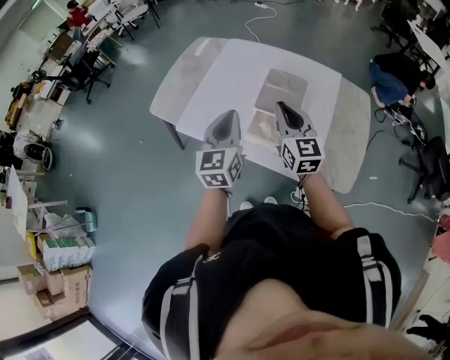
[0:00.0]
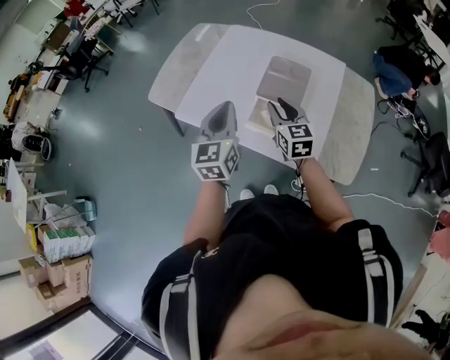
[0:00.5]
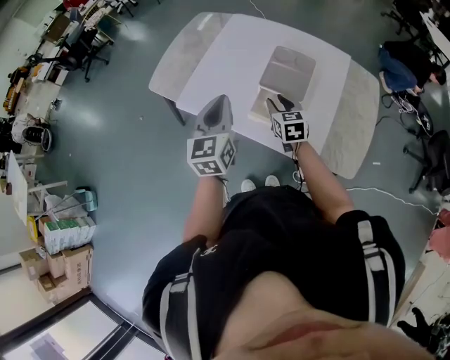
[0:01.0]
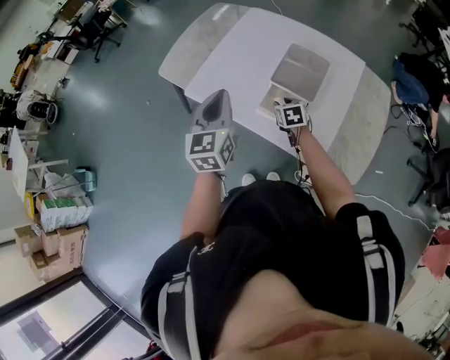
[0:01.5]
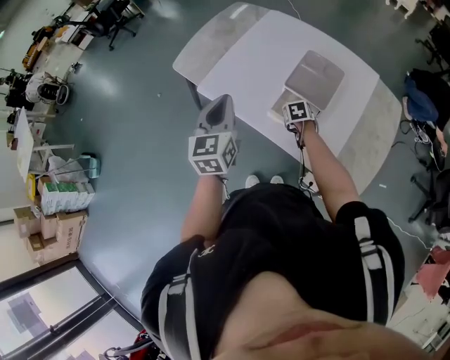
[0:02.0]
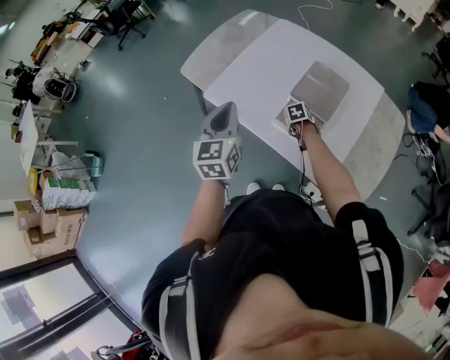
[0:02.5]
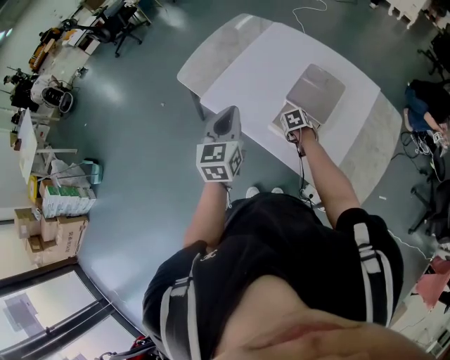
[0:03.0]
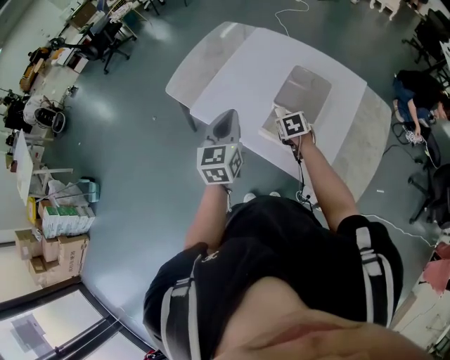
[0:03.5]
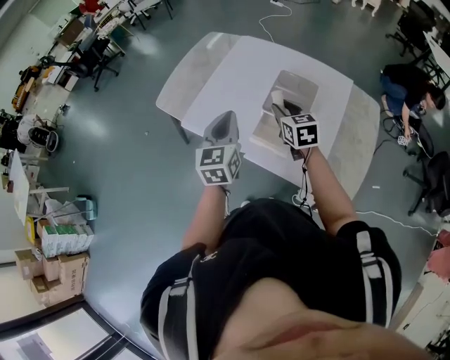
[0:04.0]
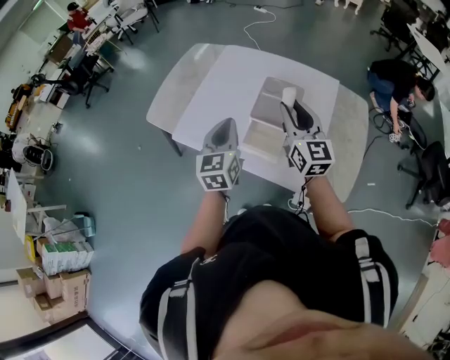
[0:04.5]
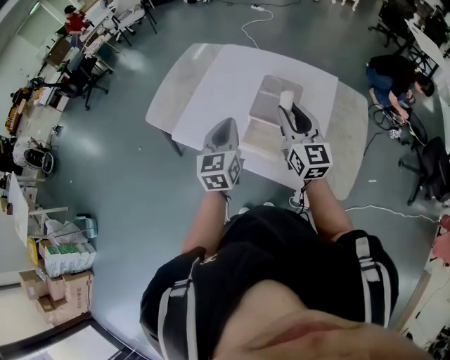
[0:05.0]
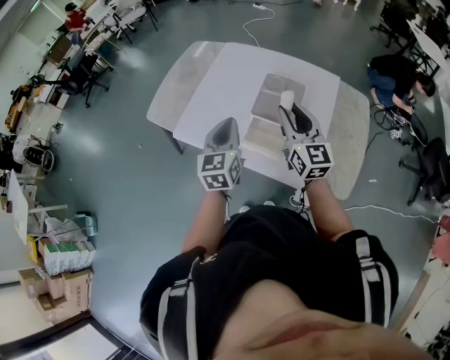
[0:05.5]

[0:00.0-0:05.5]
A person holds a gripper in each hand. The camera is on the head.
0:00.0 to 0:02.0: The right gripper goes approximately 30 cm downward, angles its fingers downward, by roughly 60 degrees, and opens. Meanwhile the left gripper goes some 10 cm to the left.
0:02.0 to 0:03.5: The right gripper travels upward by some 10 cm.
0:03.5 to 0:05.5: The left gripper is displaced to the right by approximately 5 cm. Meanwhile the right gripper is displaced upward by about 25 cm, and points its fingers roughly 60 degrees further upward.

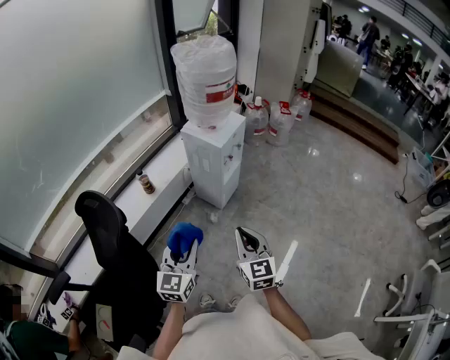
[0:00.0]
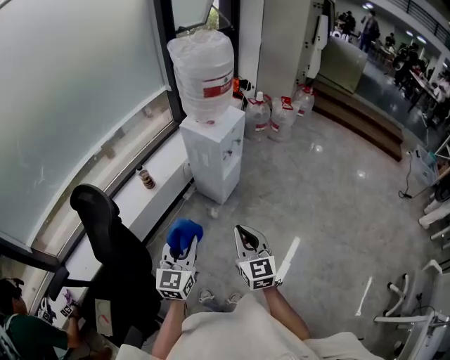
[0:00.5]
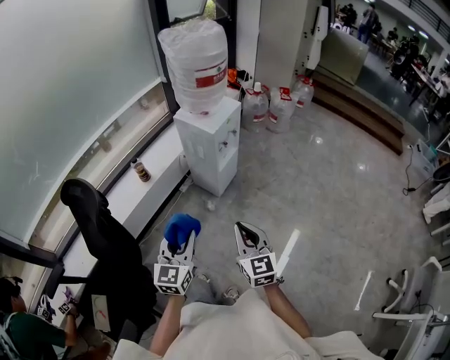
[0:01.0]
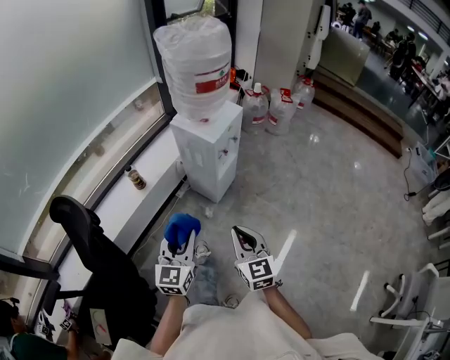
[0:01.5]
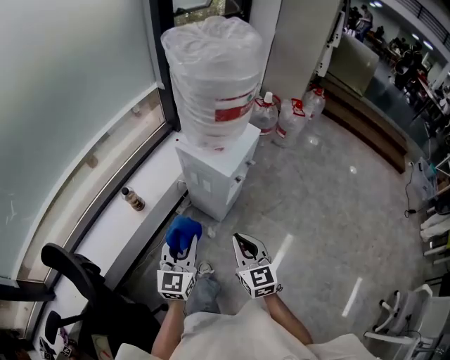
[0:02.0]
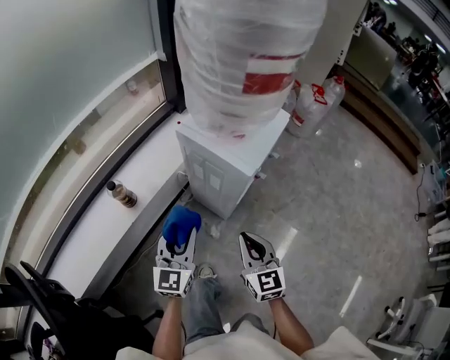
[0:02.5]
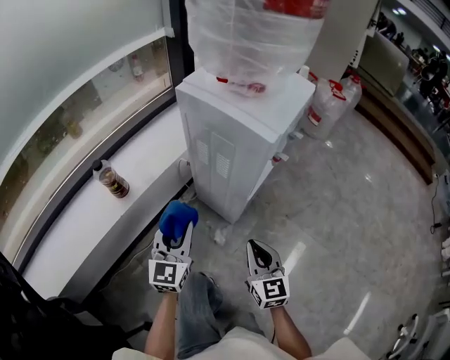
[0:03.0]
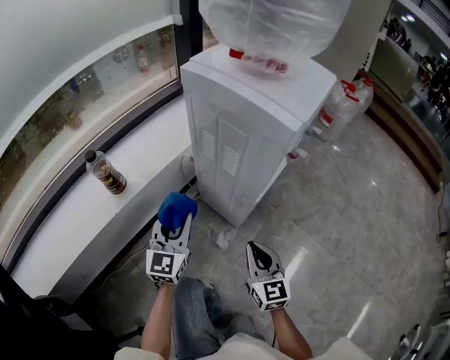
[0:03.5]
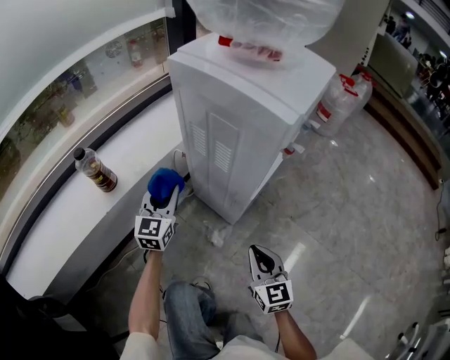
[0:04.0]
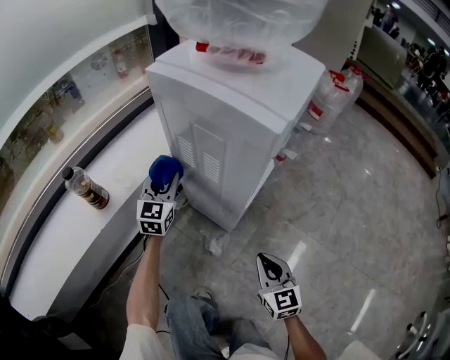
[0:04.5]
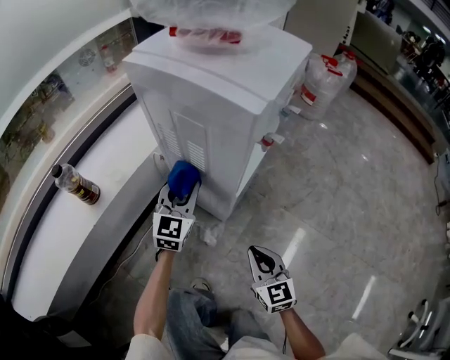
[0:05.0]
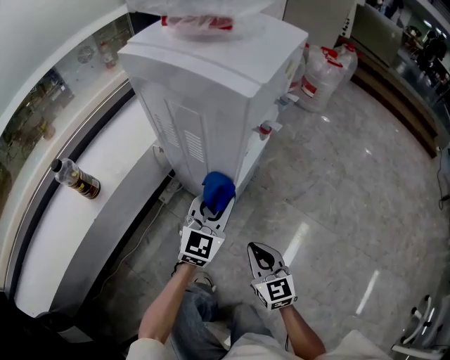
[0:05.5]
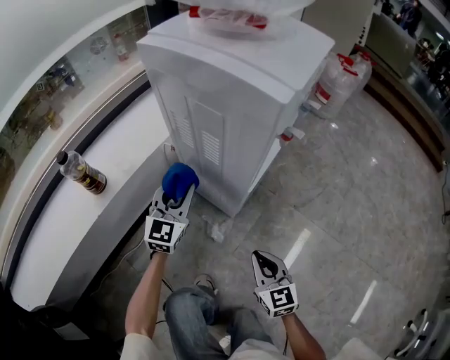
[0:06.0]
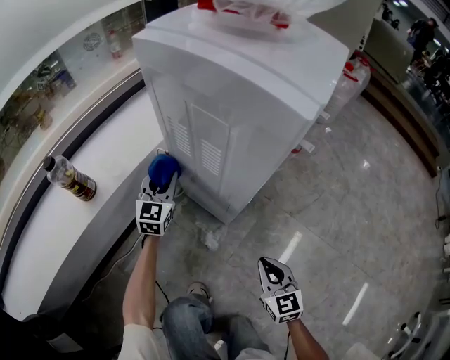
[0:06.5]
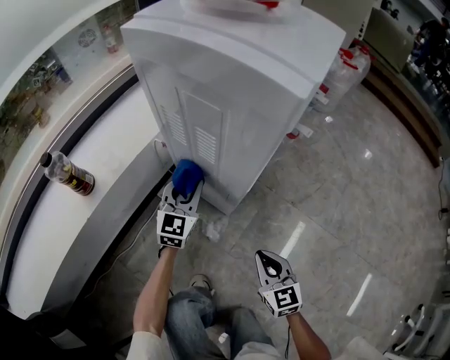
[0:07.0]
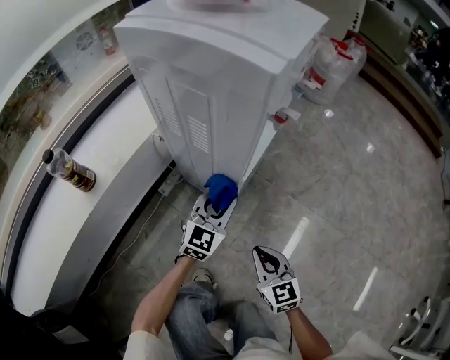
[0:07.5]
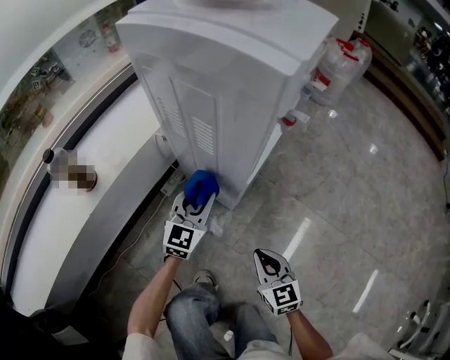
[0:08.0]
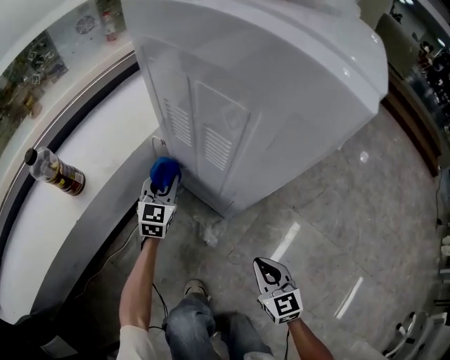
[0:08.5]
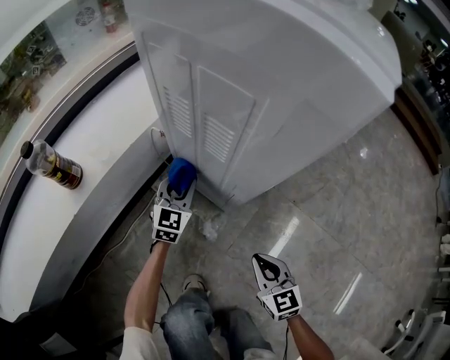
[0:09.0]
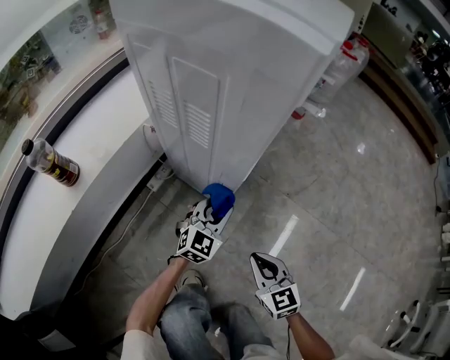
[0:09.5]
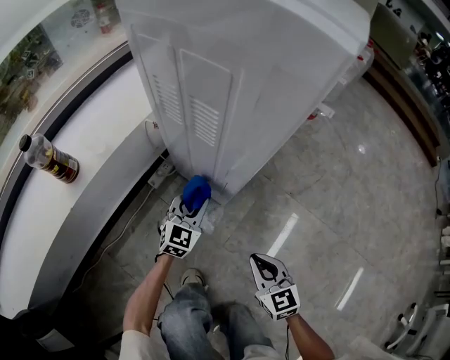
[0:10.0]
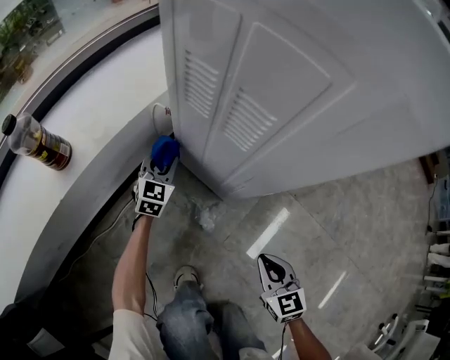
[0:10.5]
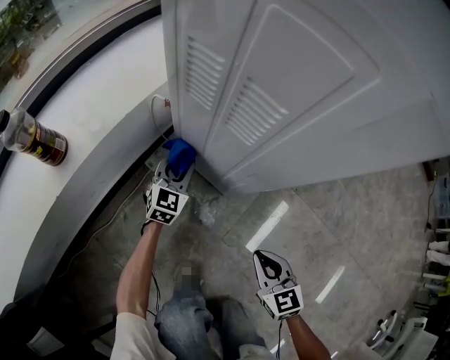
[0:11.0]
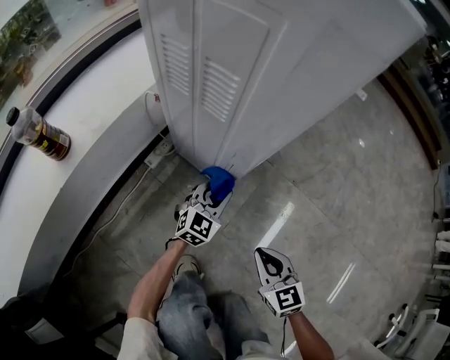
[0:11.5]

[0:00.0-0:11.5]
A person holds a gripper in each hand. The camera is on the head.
0:00.0 to 0:02.0: Both grippers travel together forward, some 25 cm.
0:02.0 to 0:04.0: The left gripper goes roughly 50 cm downward and forward, while the right gripper shifts approximately 40 cm downward.
0:04.0 to 0:06.0: The right gripper heads downward, covering roughly 5 cm. The left gripper goes some 10 cm to the right.
0:06.0 to 0:07.5: The left gripper heads to the right and downward, covering approximately 15 cm.
0:07.5 to 0:09.5: The left gripper travels downward by approximately 10 cm, and moves some 20 cm to the left and comes back.
0:09.5 to 0:11.5: The left gripper is displaced downward by some 5 cm, and goes to the left and returns, about 20 cm each way.

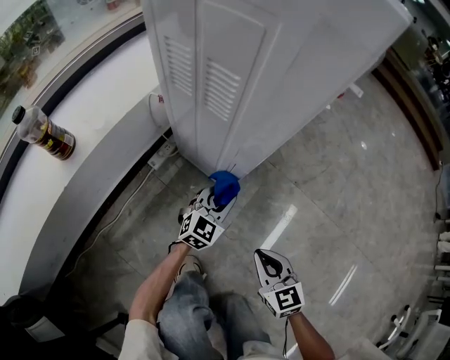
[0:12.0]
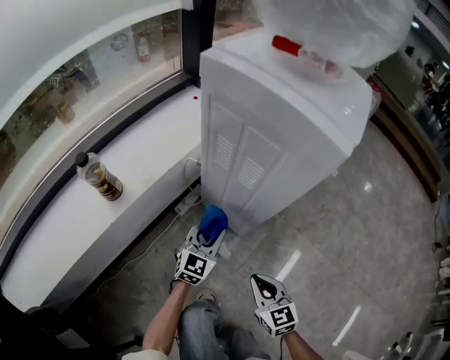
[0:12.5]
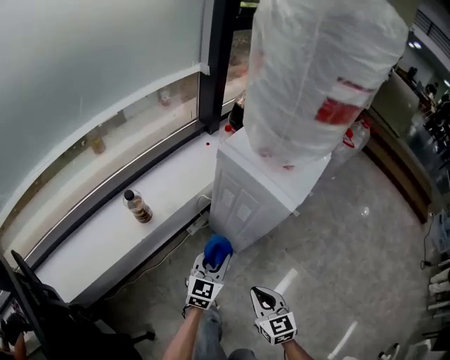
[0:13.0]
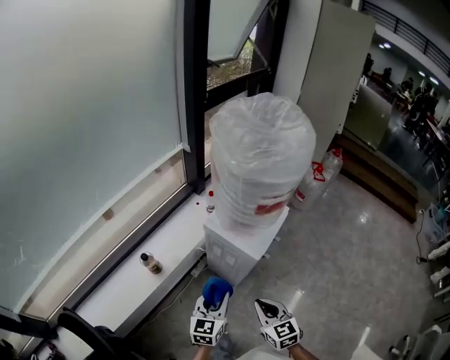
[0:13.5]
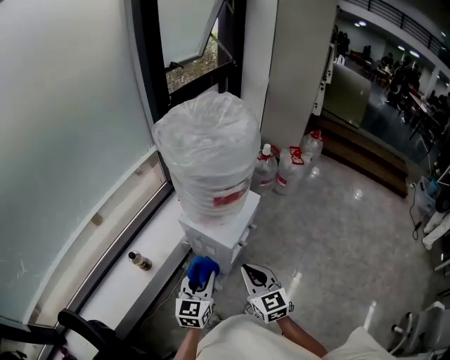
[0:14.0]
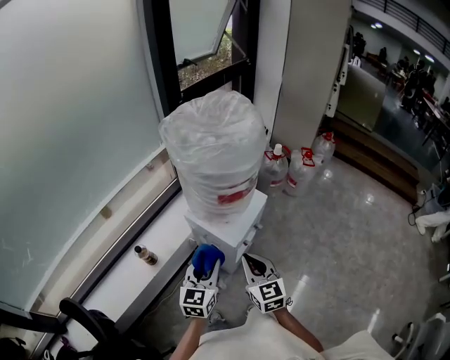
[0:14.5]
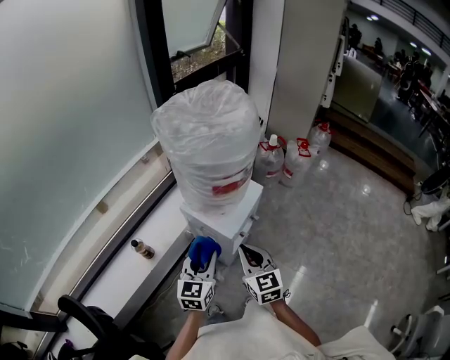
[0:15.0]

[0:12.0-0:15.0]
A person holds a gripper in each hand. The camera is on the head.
0:12.0 to 0:13.5: Both grippers move upward, roughly 60 cm. The left gripper swivels about 30 degrees.
0:13.5 to 0:15.0: The left gripper travels upward and to the right by roughly 10 cm. The right gripper goes some 15 cm upward, forward and to the right.

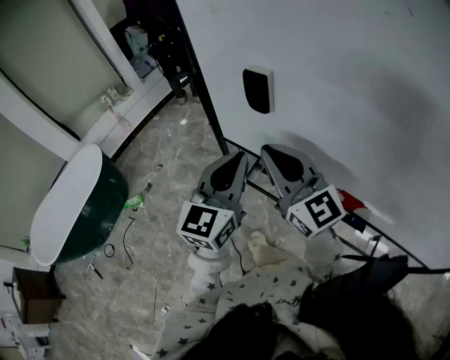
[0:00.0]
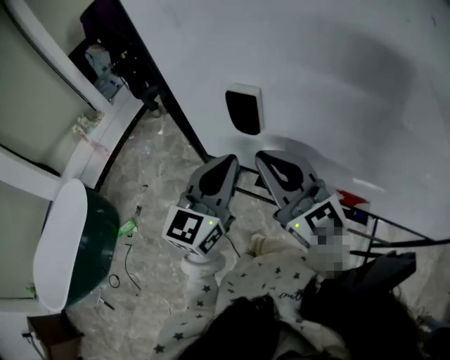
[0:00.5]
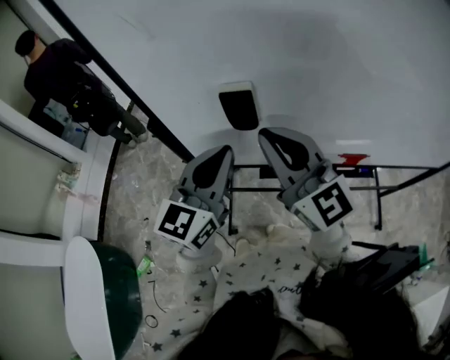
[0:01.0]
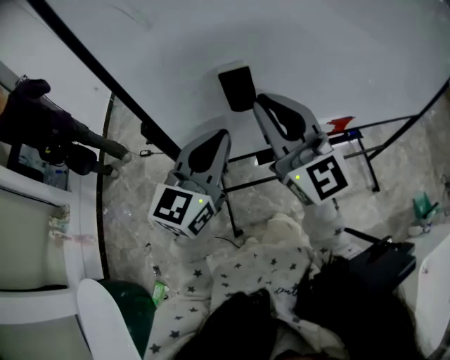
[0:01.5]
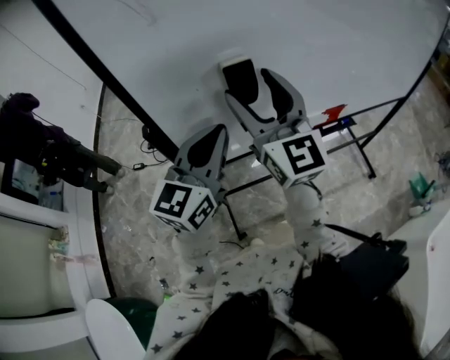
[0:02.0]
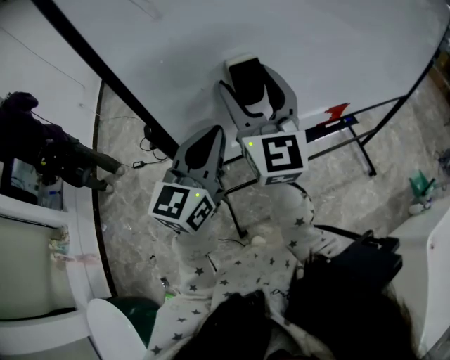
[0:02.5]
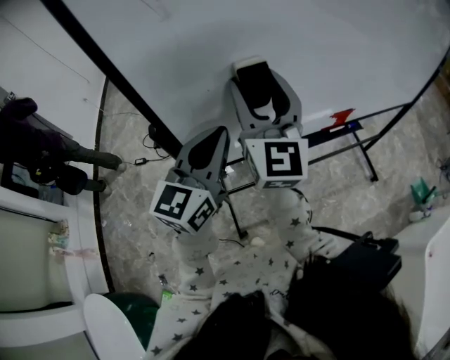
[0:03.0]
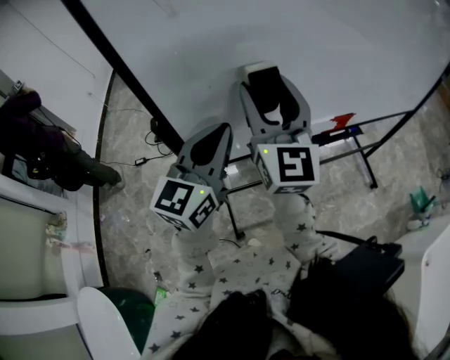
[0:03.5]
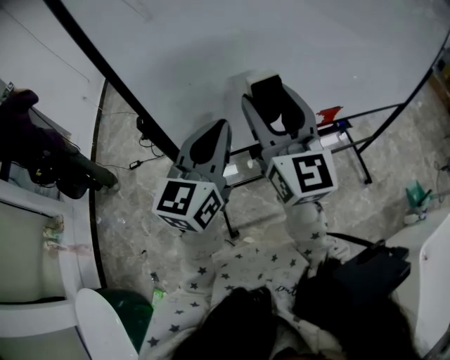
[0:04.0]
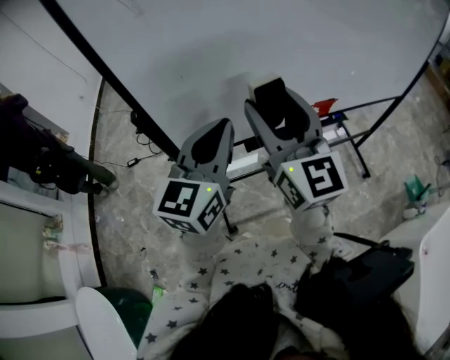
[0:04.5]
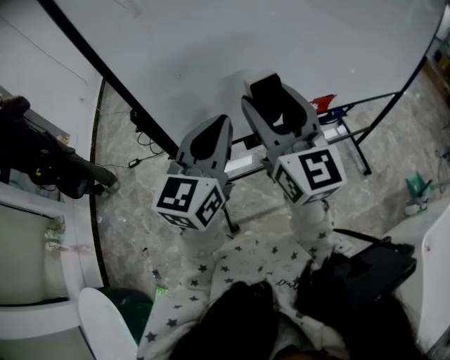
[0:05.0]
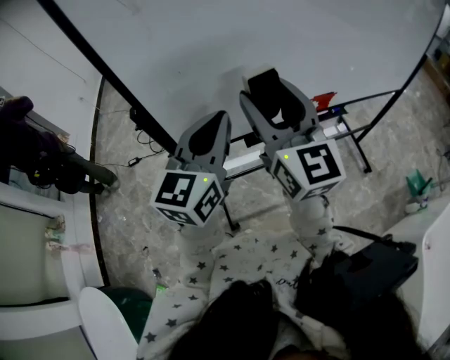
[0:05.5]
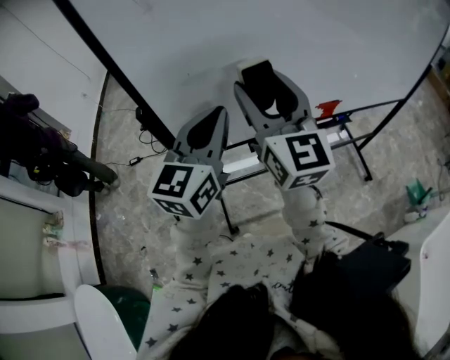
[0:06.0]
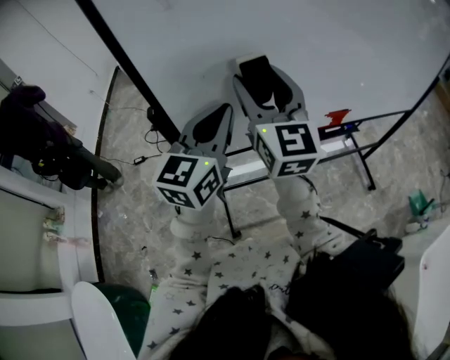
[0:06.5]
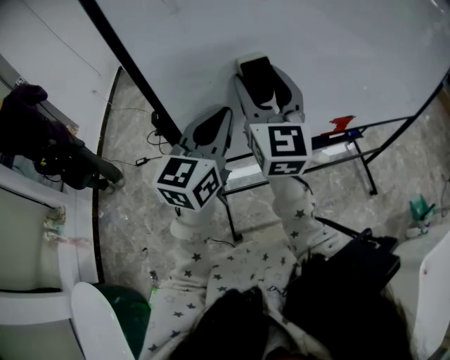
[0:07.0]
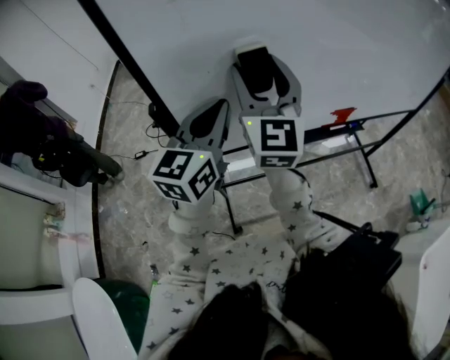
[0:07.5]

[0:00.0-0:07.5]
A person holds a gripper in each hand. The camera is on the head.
0:00.0 to 0:02.0: The left gripper changes place by some 10 cm, and rotates some 50 degrees; the right gripper shifts by approximately 10 cm, rotates about 60 degrees, and opens up.
0:02.0 to 0:07.5: The grippers make only small movements.
